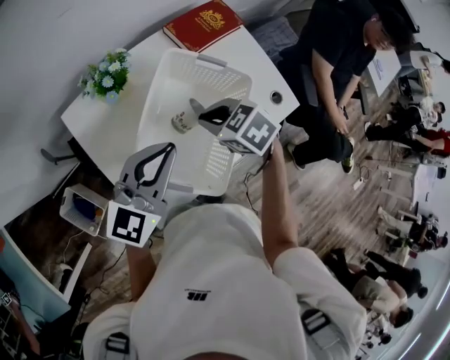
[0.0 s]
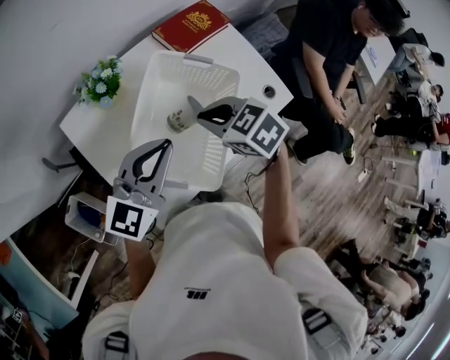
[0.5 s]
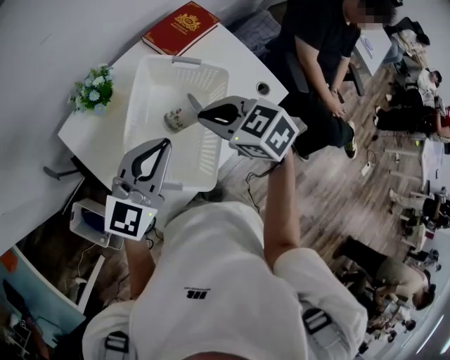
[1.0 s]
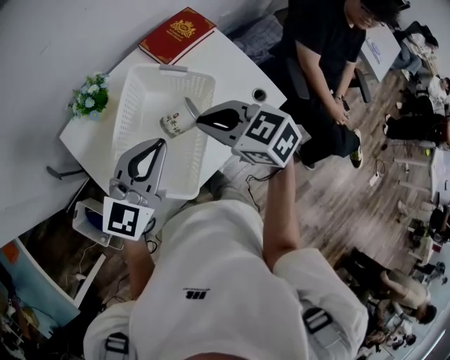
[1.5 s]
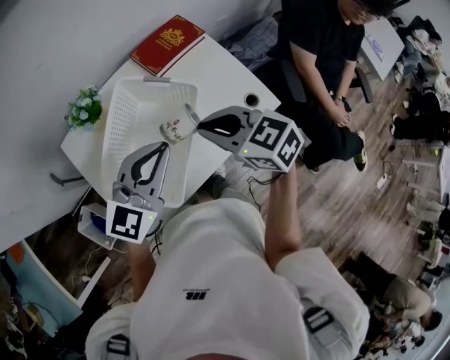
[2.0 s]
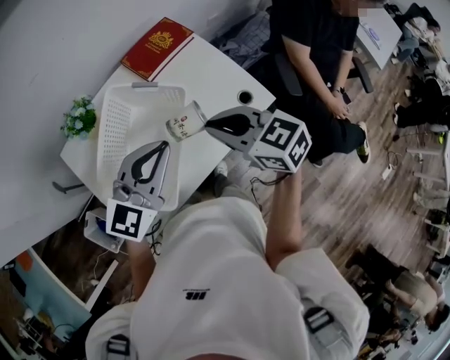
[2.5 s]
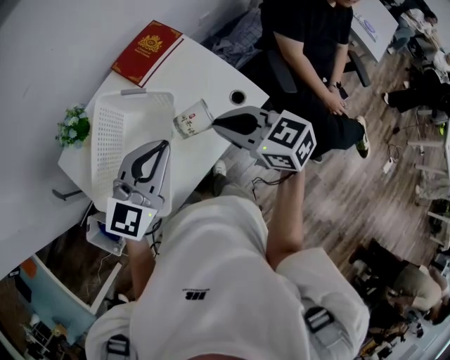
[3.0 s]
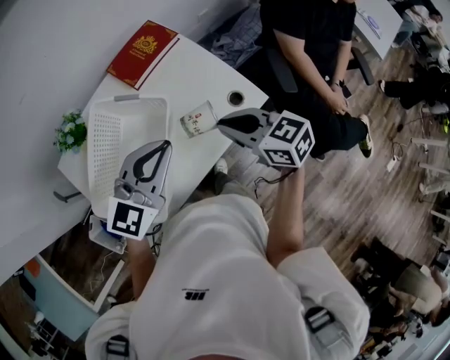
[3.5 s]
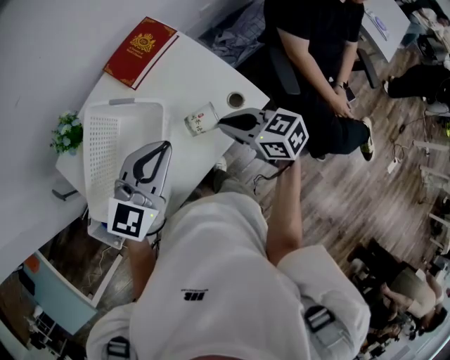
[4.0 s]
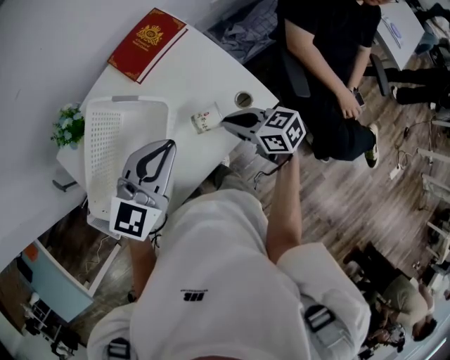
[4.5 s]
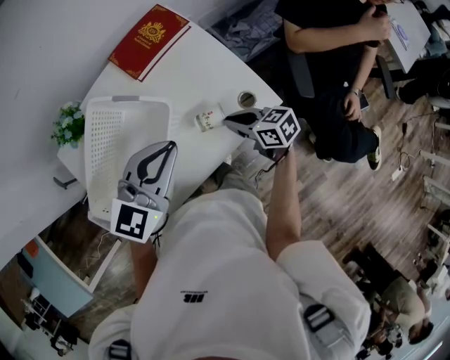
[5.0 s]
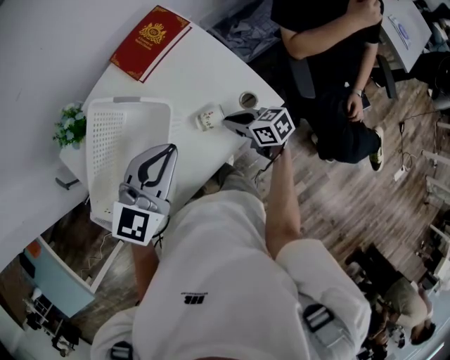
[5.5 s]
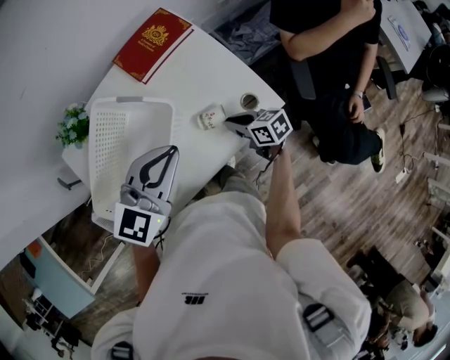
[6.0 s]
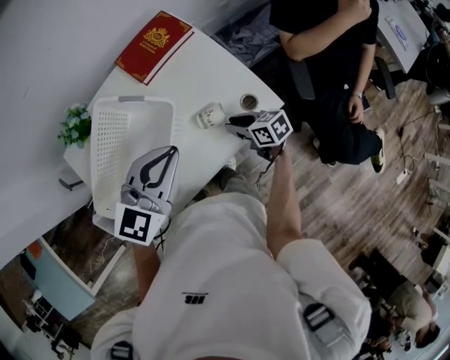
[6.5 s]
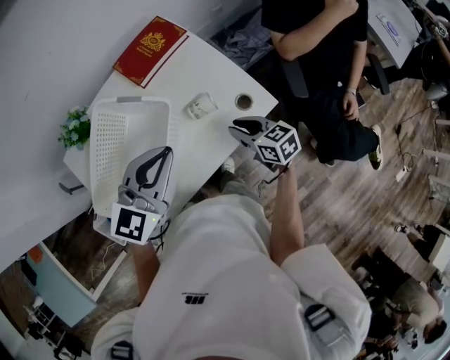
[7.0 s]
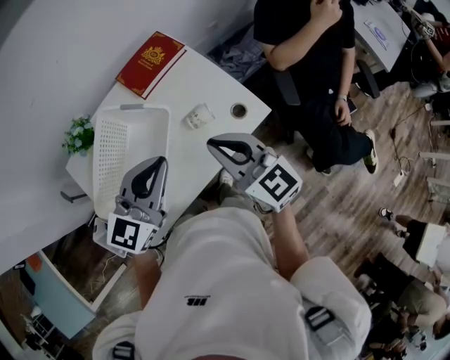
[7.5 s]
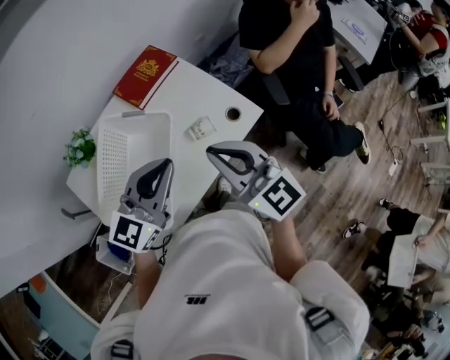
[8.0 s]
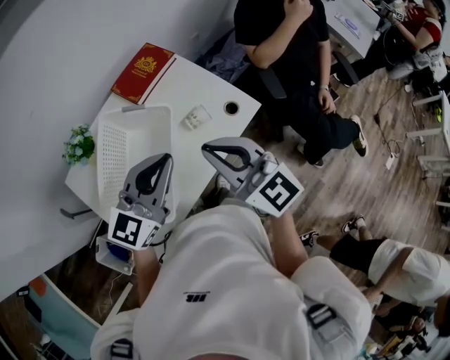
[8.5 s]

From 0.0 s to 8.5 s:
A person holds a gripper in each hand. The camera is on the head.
From 0.0 s to 2.0 s: The right gripper is displaced to the right and upward by about 15 cm, and turns by roughly 30 degrees. The left gripper goes some 15 cm to the right.
From 2.0 s to 4.0 s: The left gripper goes some 10 cm to the right. Meanwhile the right gripper shifts approximately 20 cm to the right and downward.
From 4.0 s to 6.5 s: The right gripper shifts roughly 15 cm downward.
From 6.5 s to 8.5 s: The left gripper goes some 10 cm upward and backward. The right gripper heads upward, covering approximately 35 cm, and angles its fingers upward, by about 30 degrees.

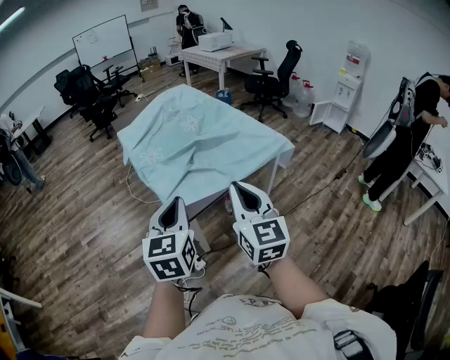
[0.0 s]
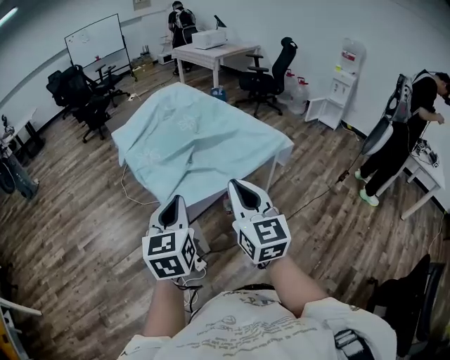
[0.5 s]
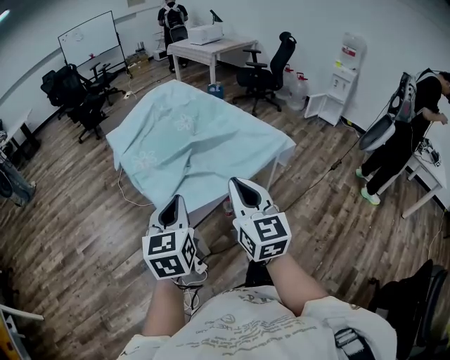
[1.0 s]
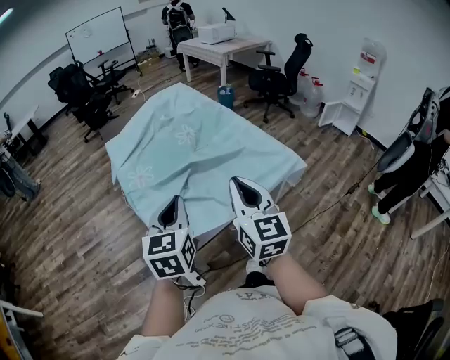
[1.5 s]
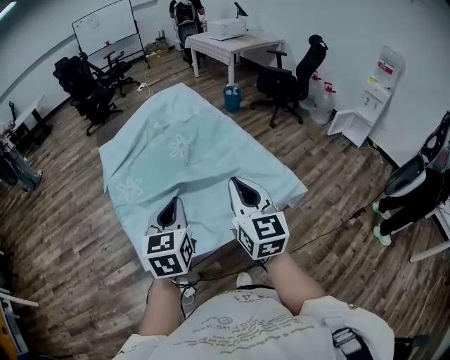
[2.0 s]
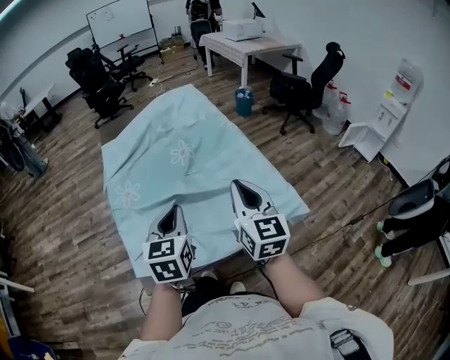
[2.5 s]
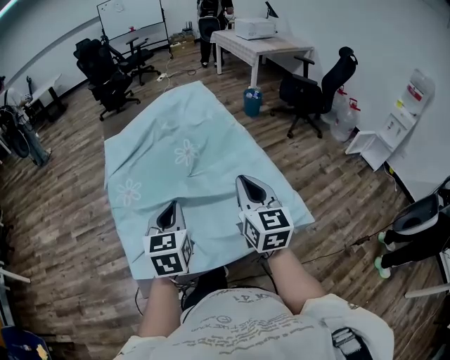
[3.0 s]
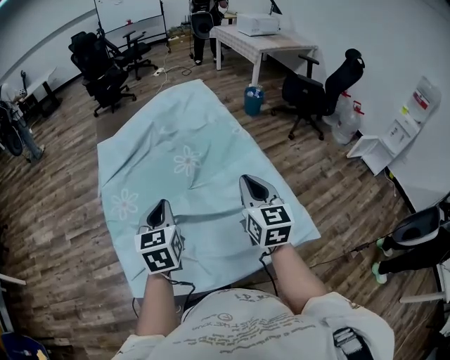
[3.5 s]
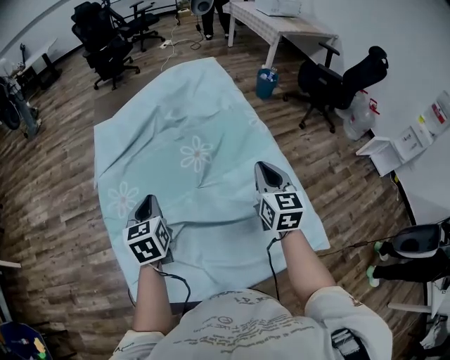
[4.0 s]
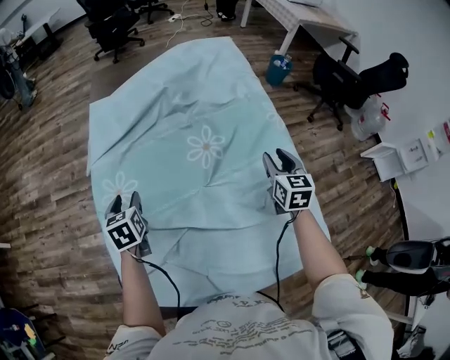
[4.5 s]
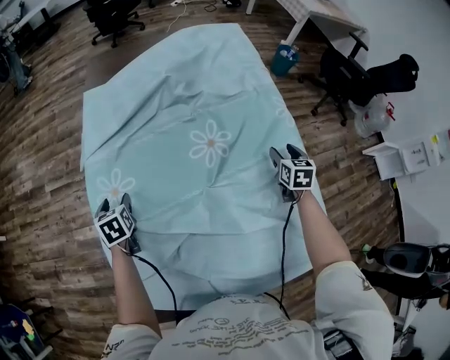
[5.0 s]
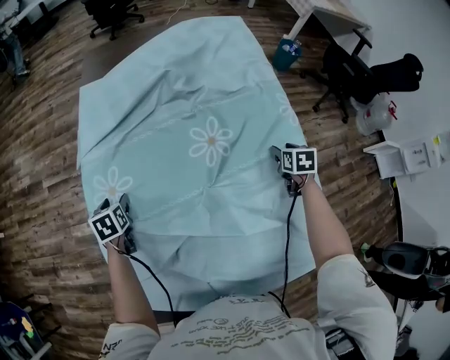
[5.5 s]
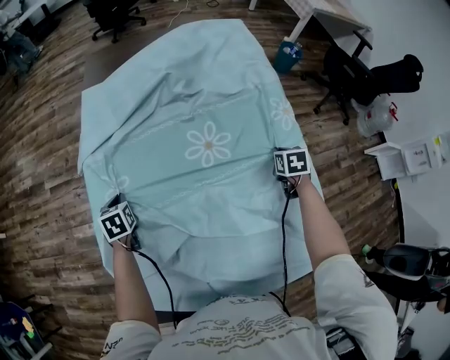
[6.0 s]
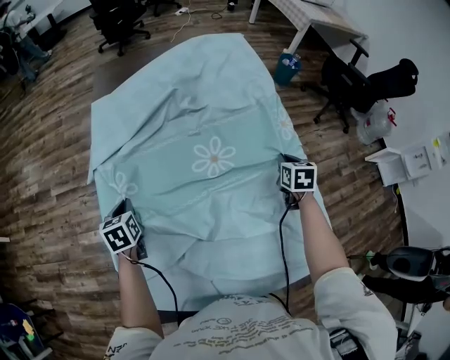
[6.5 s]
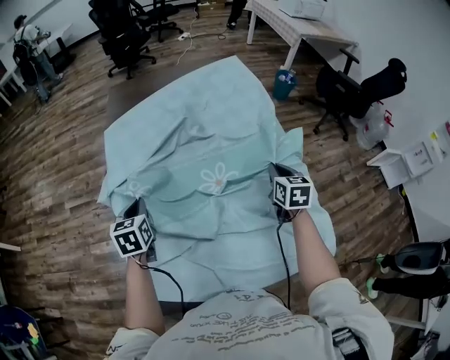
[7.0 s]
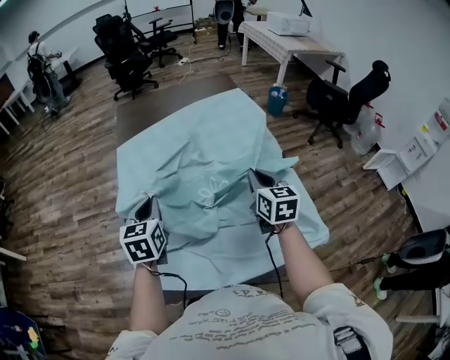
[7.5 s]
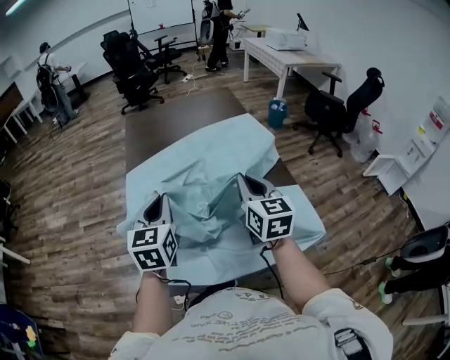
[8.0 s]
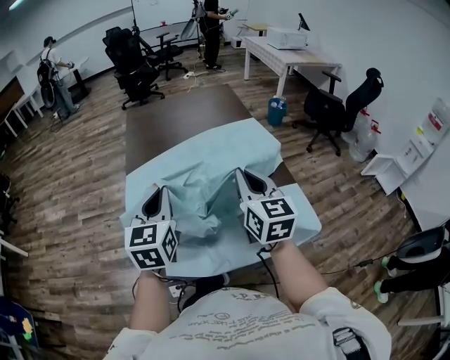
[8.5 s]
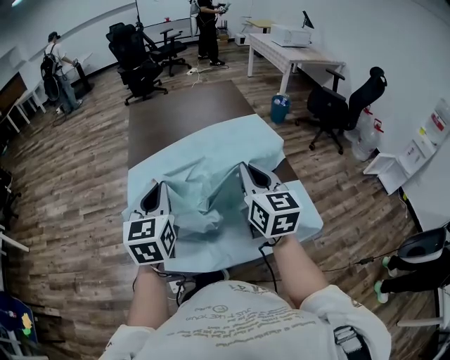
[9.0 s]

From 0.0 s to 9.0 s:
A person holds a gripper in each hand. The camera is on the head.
From 0.0 s to 2.0 s: The grippers both shift forward by approximately 35 cm.
From 2.0 s to 4.5 s: The right gripper heads forward and downward, covering about 50 cm, swivels about 30 degrees, and opens up, while the left gripper travels forward, downward and to the left by some 40 cm, swivels approximately 40 degrees, and opens up.
From 4.5 s to 7.0 s: The left gripper goes downward and returns, some 10 cm each way, and closes; the right gripper reaches roughly 15 cm downward, then returns, and closes its fingers.
From 7.0 s to 9.0 s: The right gripper is displaced backward, upward and to the left by approximately 35 cm, and turns by some 30 degrees, while the left gripper travels upward, backward and to the right by approximately 30 cm, and changes its angle by roughly 30 degrees.

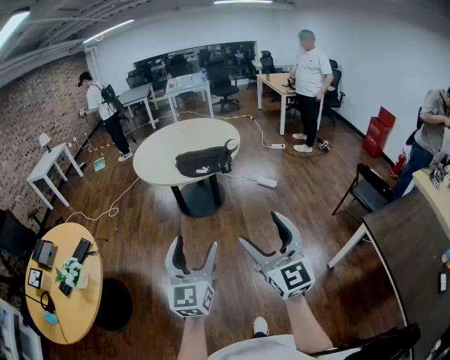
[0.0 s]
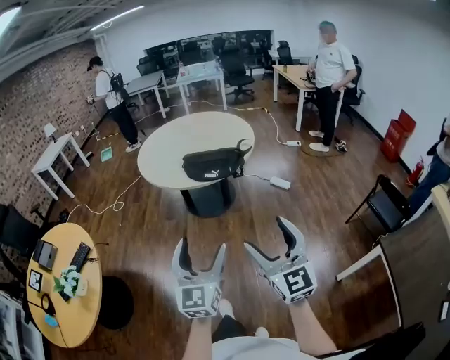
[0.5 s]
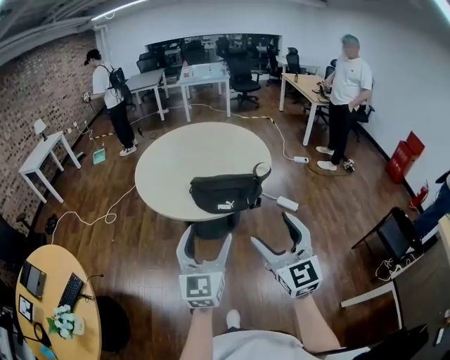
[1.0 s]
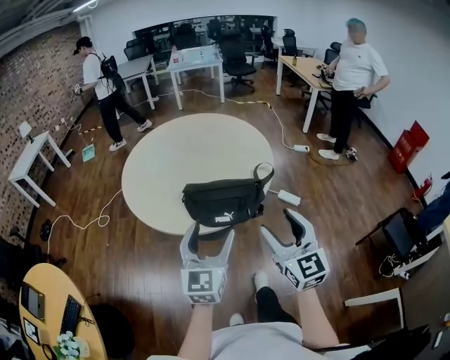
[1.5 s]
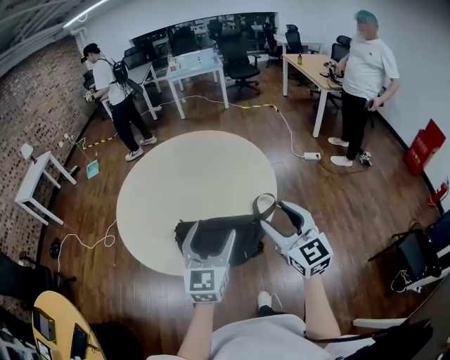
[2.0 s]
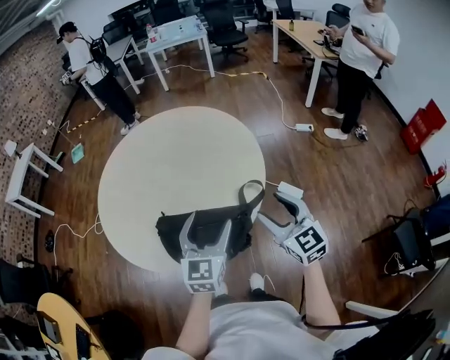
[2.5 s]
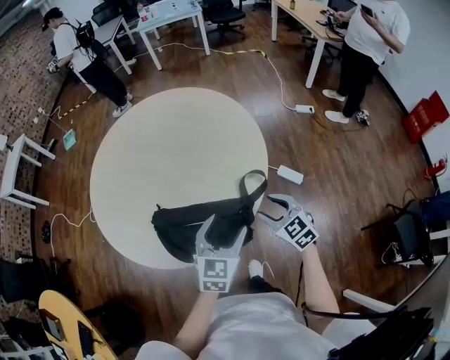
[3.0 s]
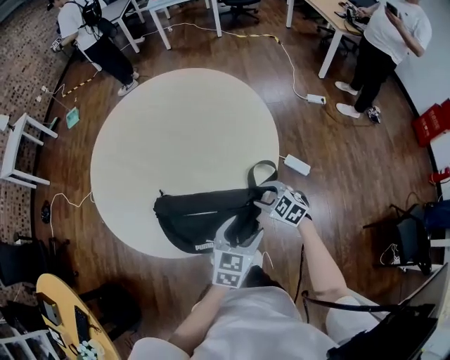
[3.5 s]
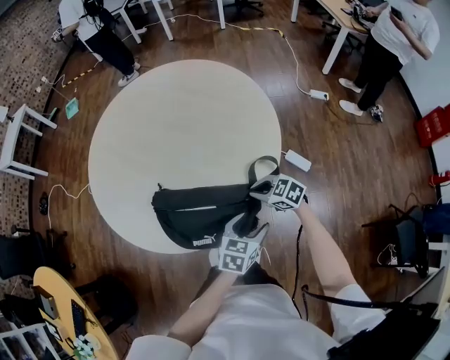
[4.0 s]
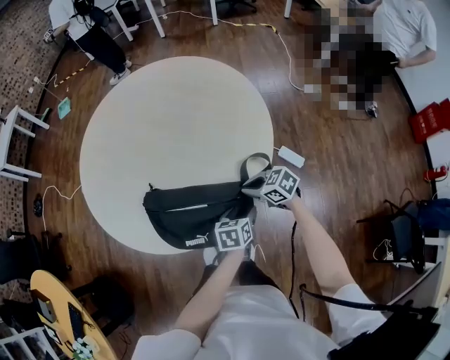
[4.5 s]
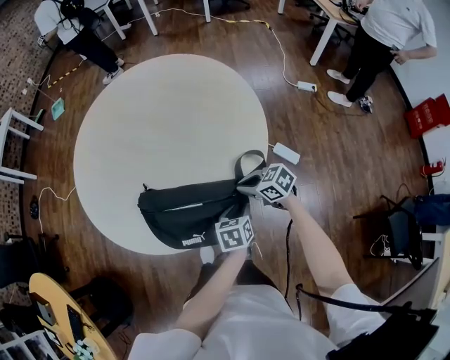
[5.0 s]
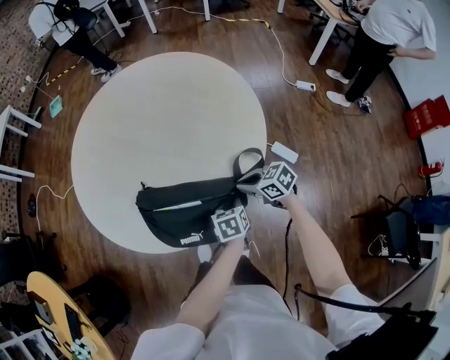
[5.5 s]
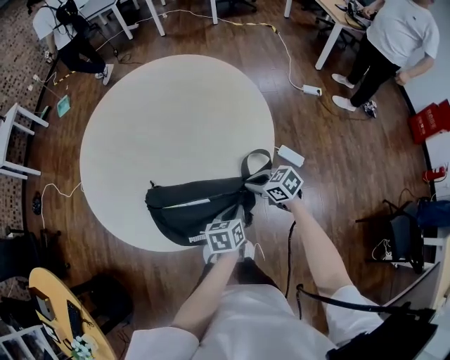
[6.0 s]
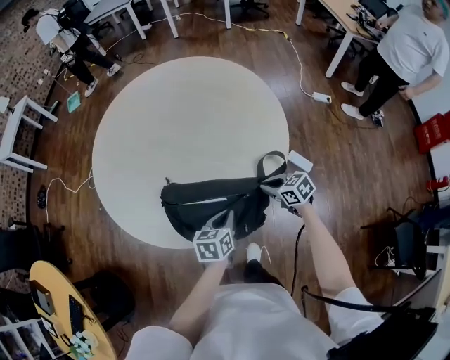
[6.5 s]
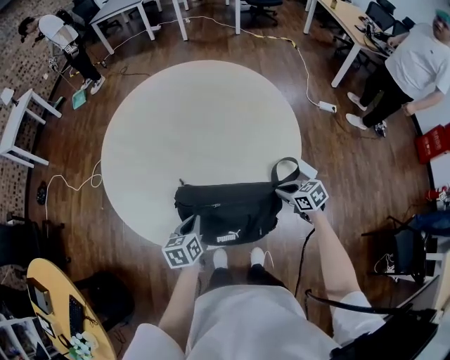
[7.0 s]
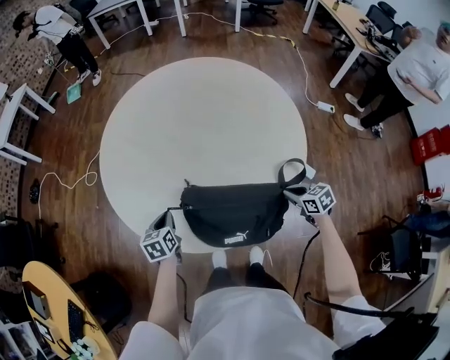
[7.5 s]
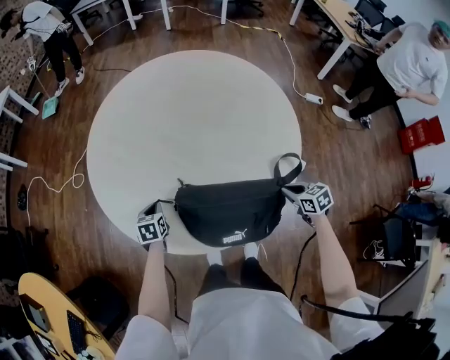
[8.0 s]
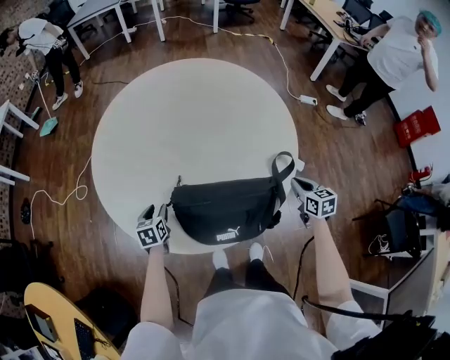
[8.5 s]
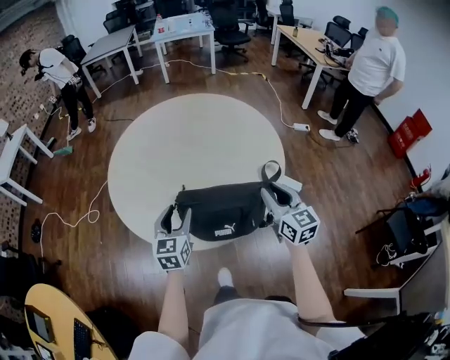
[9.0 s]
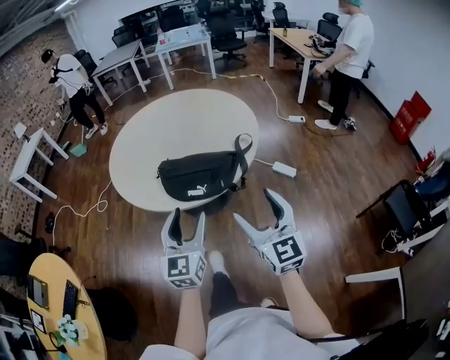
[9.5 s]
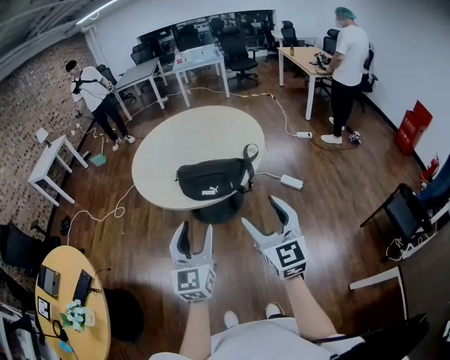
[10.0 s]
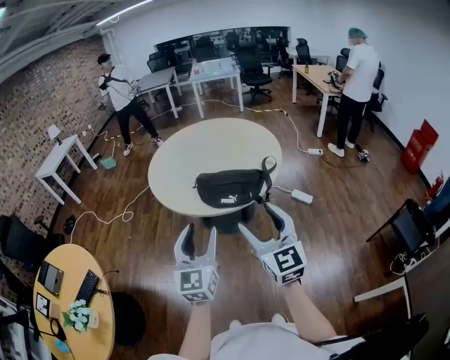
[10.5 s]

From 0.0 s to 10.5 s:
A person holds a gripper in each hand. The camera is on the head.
From 0.0 s to 2.0 s: The two grippers travel together, forward, approximately 80 cm.
From 2.0 s to 4.0 s: The left gripper travels downward and to the right by roughly 30 cm, and tips its fingers downward by some 30 degrees; the right gripper travels downward and forward by approximately 35 cm, points its fingers about 40 degrees further downward, and closes its fingers.
From 4.0 s to 6.5 s: The right gripper swivels approximately 20 degrees. The left gripper goes some 15 cm to the left and forward, rotates some 20 degrees, and closes.
From 6.5 s to 8.5 s: The right gripper changes place by about 5 cm, and rotates roughly 40 degrees; the left gripper heads to the left and forward, covering some 35 cm, and opens its fingers.
From 8.5 s to 10.5 s: The left gripper heads backward and upward, covering some 70 cm, and tips its fingers upward by approximately 50 degrees, while the right gripper shifts some 60 cm backward, upward and to the left, tilts its fingers about 40 degrees upward, and opens up.
